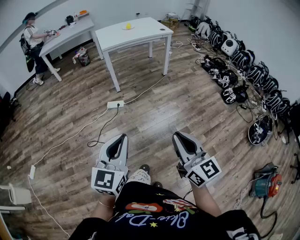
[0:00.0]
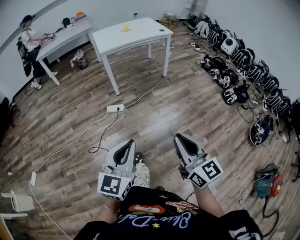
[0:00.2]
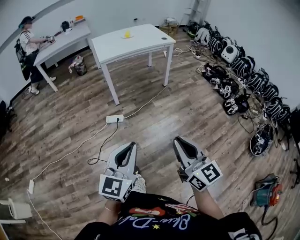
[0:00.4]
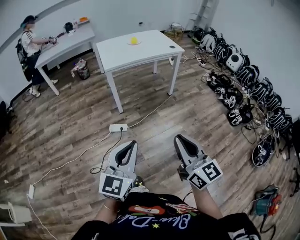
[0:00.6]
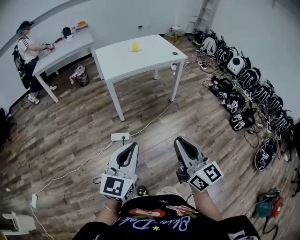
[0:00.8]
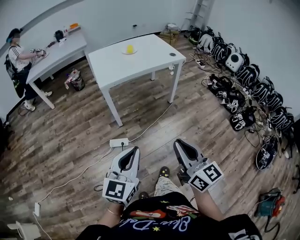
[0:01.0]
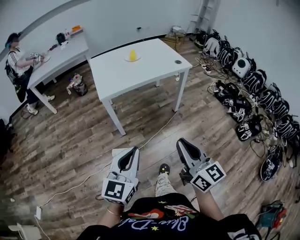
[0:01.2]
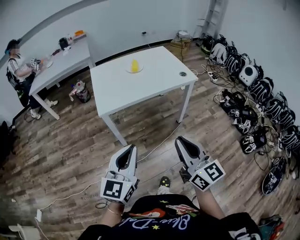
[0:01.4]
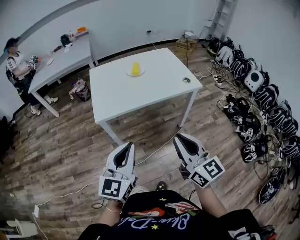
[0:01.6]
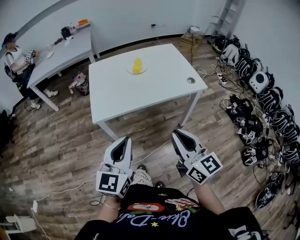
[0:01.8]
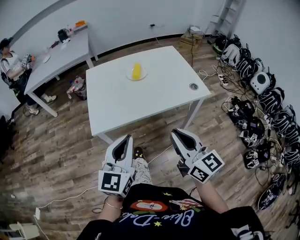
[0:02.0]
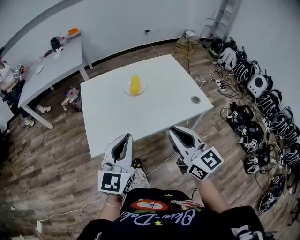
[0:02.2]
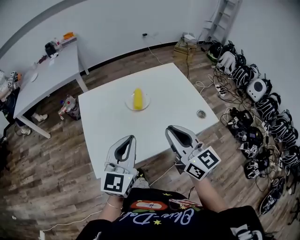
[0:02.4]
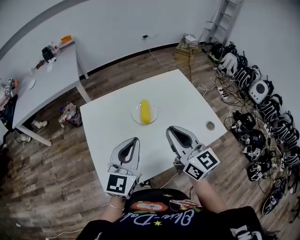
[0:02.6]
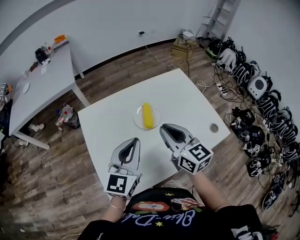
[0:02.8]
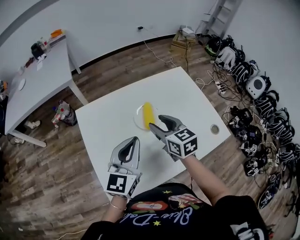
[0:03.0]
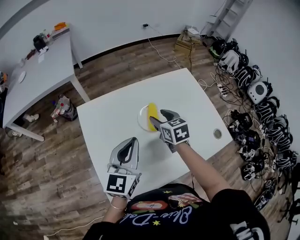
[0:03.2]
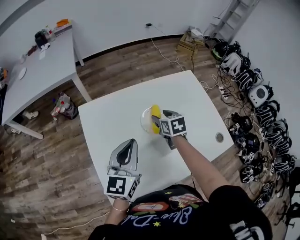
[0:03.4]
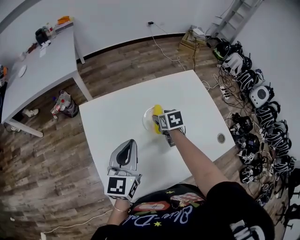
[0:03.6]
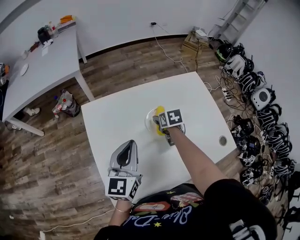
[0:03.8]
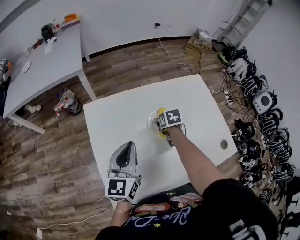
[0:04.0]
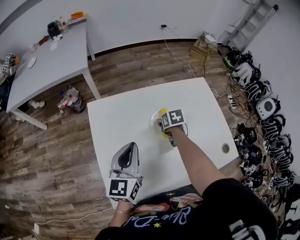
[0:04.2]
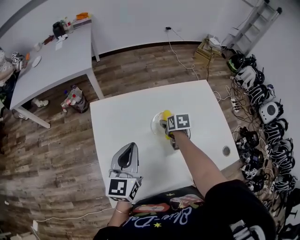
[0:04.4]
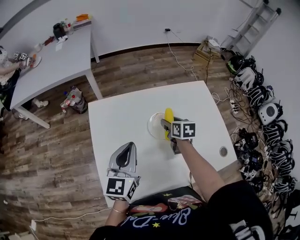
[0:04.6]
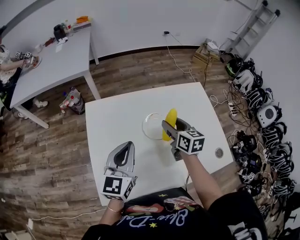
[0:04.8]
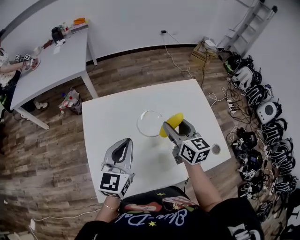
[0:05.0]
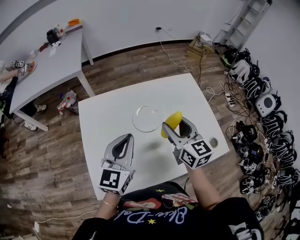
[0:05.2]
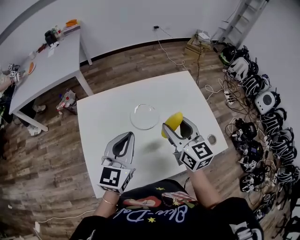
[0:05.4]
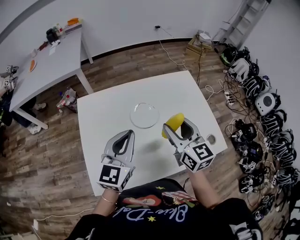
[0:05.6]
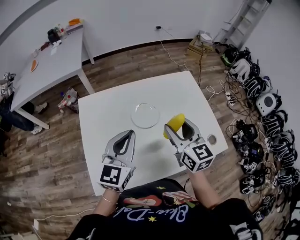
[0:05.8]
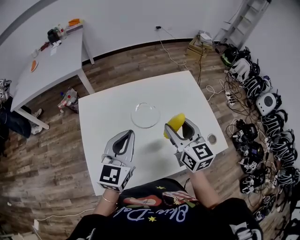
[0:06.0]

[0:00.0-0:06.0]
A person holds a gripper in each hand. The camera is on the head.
0:00.0 to 0:01.6: The pair of grippers is taken forward, about 80 cm.
0:01.6 to 0:03.0: The two grippers travel together, forward, roughly 60 cm. The right gripper rotates approximately 30 degrees, and opens.
0:03.0 to 0:04.4: The left gripper heads to the left, covering roughly 10 cm. Meanwhile the right gripper travels downward and forward by about 20 cm, and points its fingers roughly 30 degrees further downward.
0:04.4 to 0:06.0: The left gripper shifts some 10 cm to the right. The right gripper travels upward, backward and to the right by about 30 cm, and points its fingers some 50 degrees further upward.

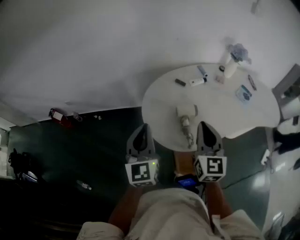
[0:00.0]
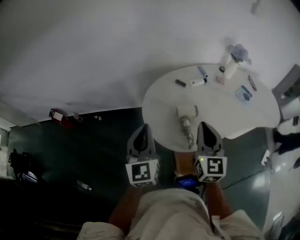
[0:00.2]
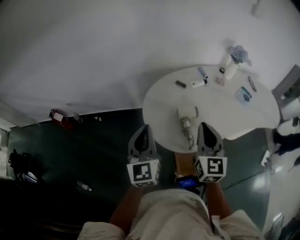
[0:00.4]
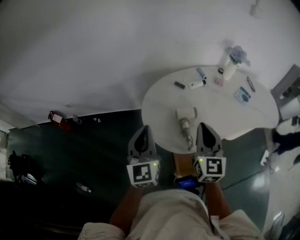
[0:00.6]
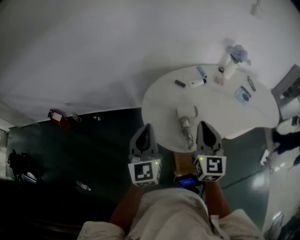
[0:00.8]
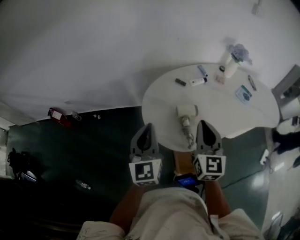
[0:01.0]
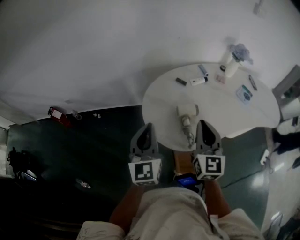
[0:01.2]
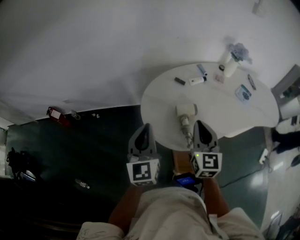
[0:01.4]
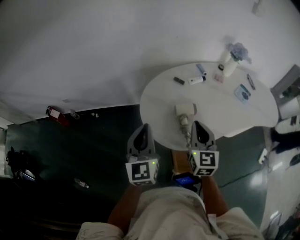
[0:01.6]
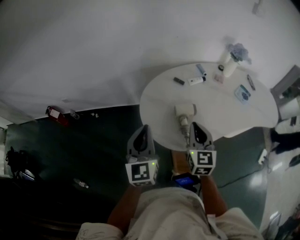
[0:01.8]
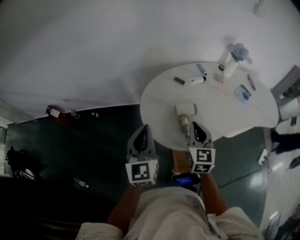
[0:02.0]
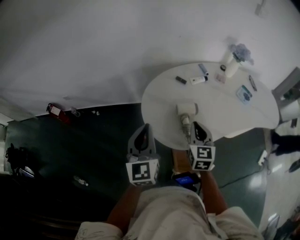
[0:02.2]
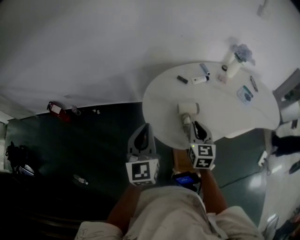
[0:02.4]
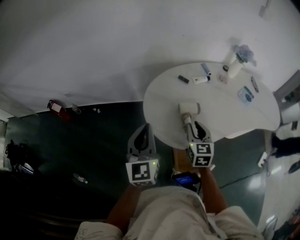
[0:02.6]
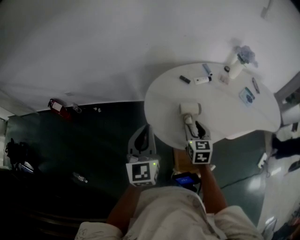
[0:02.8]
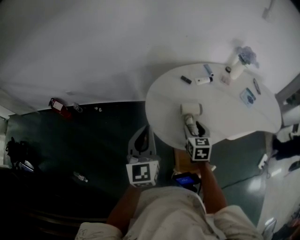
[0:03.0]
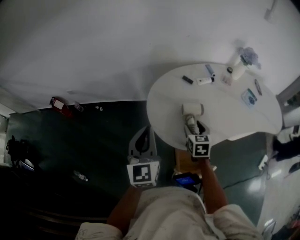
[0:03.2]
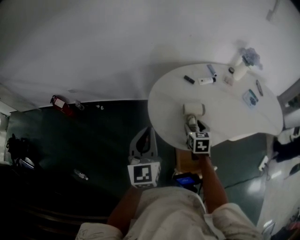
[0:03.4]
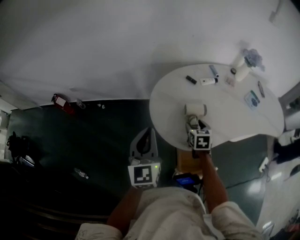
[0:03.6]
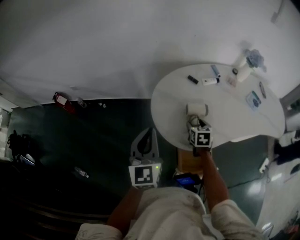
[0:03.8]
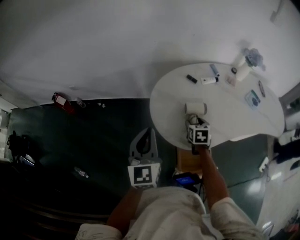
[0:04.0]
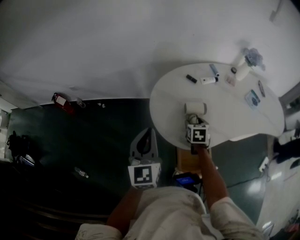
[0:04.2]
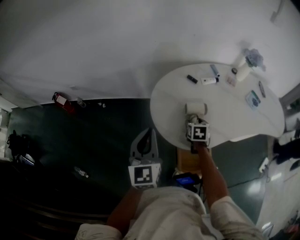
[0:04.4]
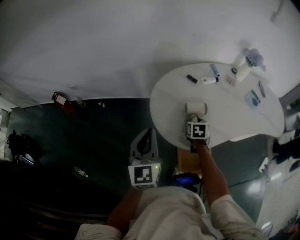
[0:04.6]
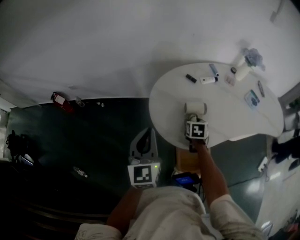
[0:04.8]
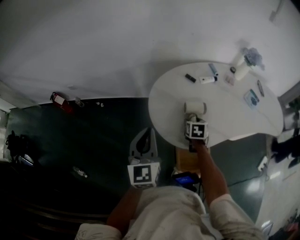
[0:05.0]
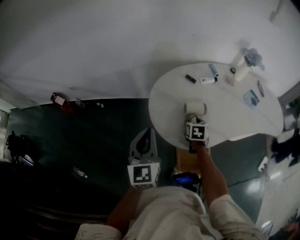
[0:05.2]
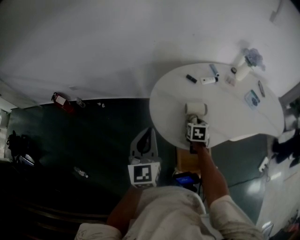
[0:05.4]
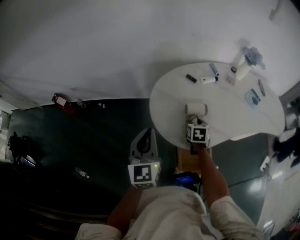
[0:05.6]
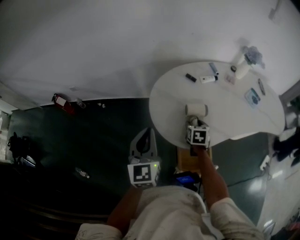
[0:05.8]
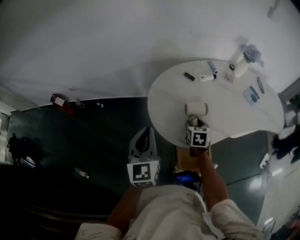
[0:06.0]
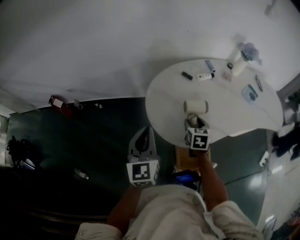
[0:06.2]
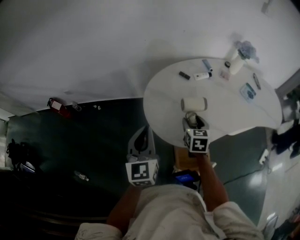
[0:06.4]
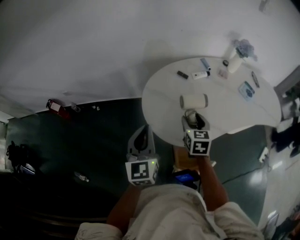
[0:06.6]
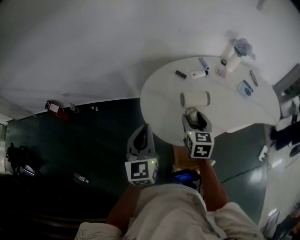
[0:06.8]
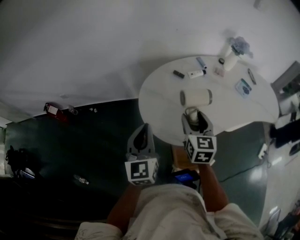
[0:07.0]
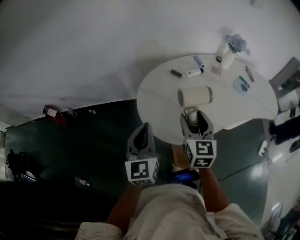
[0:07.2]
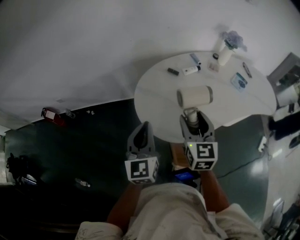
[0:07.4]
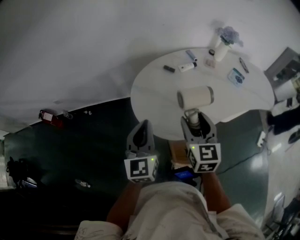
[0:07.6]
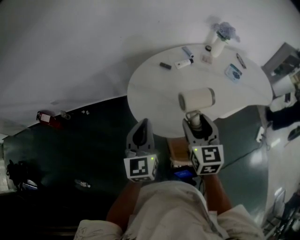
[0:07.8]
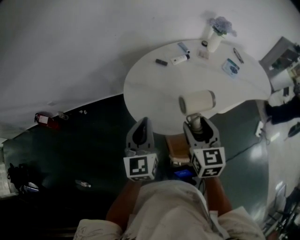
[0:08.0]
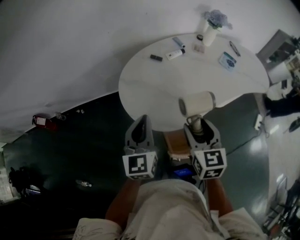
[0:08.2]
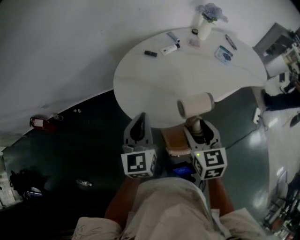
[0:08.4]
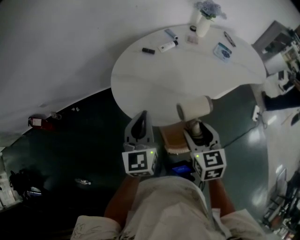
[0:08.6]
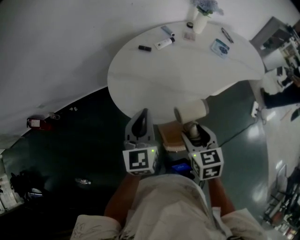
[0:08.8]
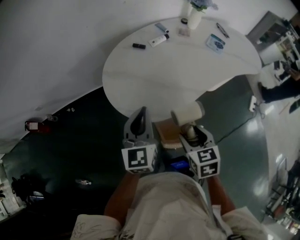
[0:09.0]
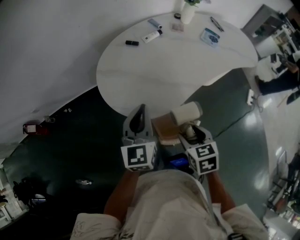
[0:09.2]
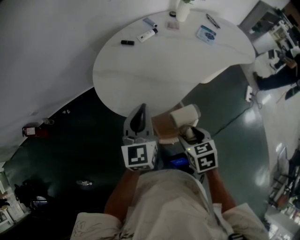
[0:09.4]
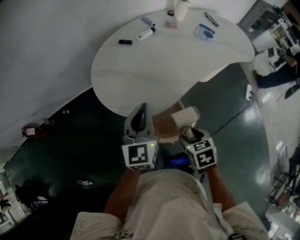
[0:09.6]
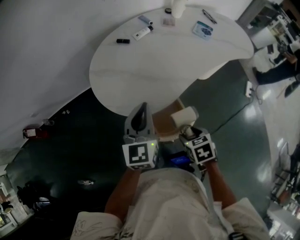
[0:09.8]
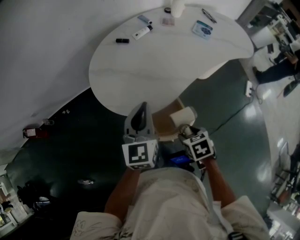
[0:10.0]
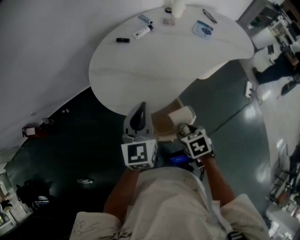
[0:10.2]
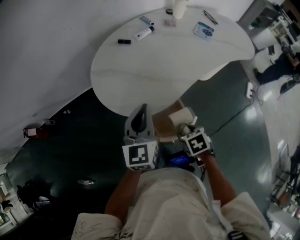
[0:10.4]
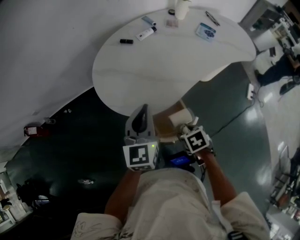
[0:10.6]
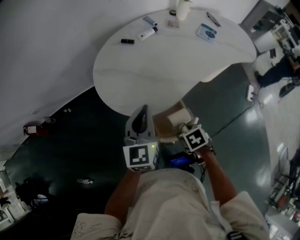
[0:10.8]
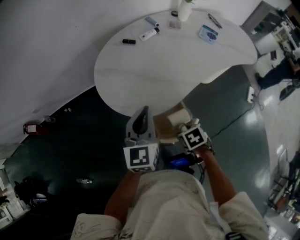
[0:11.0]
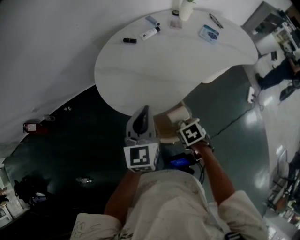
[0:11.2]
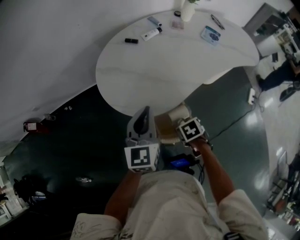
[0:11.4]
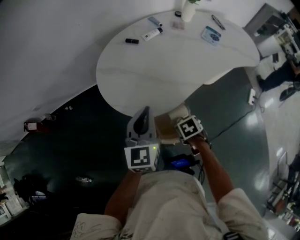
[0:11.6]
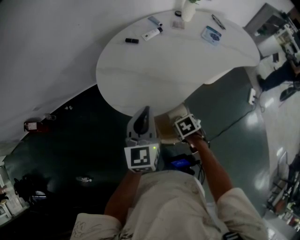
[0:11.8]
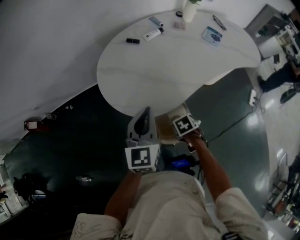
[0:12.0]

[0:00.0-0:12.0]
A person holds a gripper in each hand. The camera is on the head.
0:00.0 to 0:01.6: The right gripper shifts by roughly 5 cm.
0:01.6 to 0:03.0: The right gripper heads downward, covering about 10 cm, changes its angle by some 20 degrees, and opens its fingers.
0:03.0 to 0:04.4: The right gripper is displaced downward by some 10 cm.
0:06.0 to 0:07.6: The right gripper heads upward, covering roughly 20 cm, and turns by about 30 degrees.
0:07.6 to 0:09.0: The right gripper shifts about 20 cm backward, downward and to the right, and turns by approximately 30 degrees, while the left gripper shifts about 10 cm to the right.
0:09.0 to 0:10.4: The right gripper shifts some 10 cm downward, and changes its angle by some 30 degrees, while the left gripper shifts by about 5 cm.
0:10.4 to 0:12.0: The right gripper is displaced downward by approximately 5 cm.

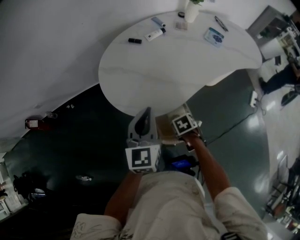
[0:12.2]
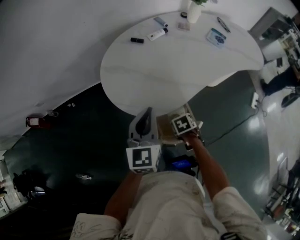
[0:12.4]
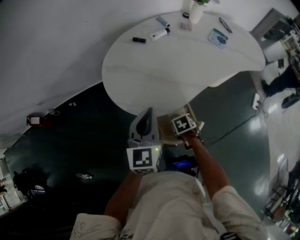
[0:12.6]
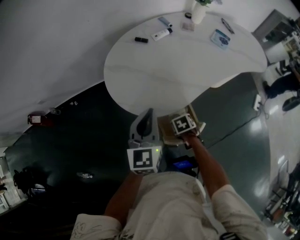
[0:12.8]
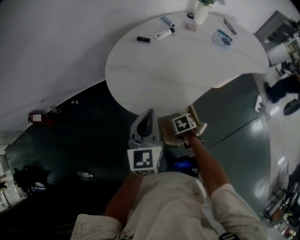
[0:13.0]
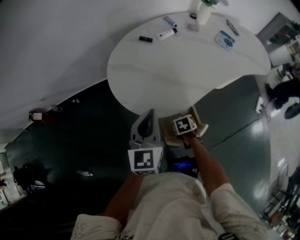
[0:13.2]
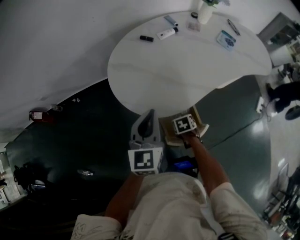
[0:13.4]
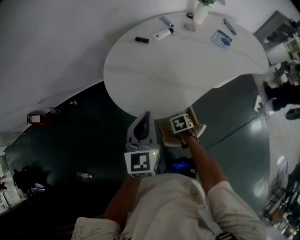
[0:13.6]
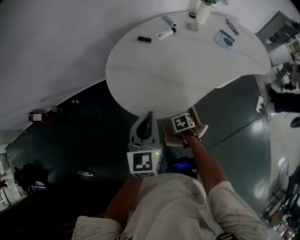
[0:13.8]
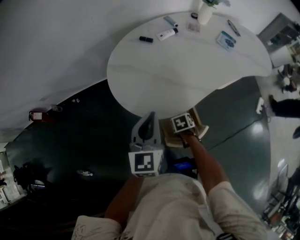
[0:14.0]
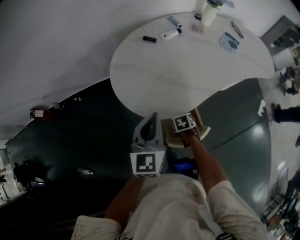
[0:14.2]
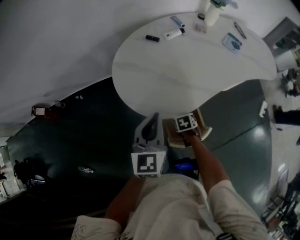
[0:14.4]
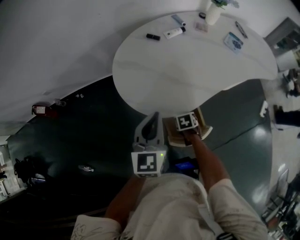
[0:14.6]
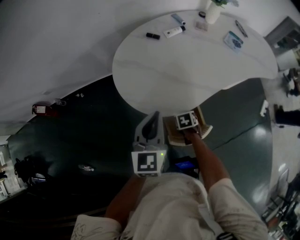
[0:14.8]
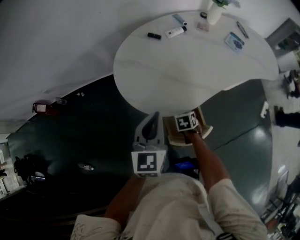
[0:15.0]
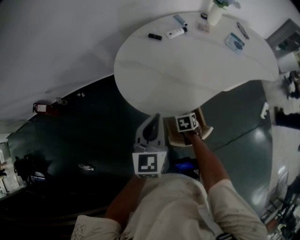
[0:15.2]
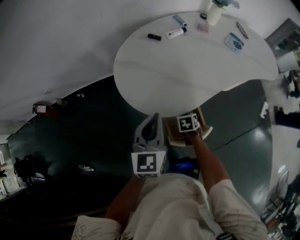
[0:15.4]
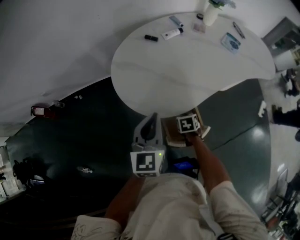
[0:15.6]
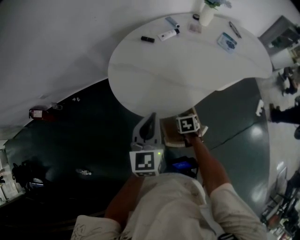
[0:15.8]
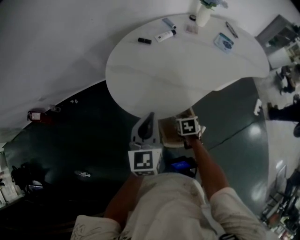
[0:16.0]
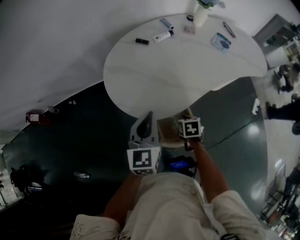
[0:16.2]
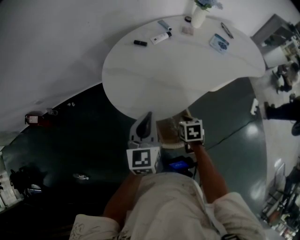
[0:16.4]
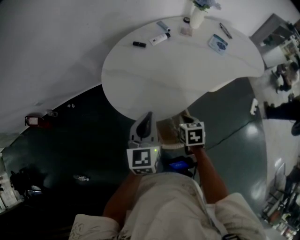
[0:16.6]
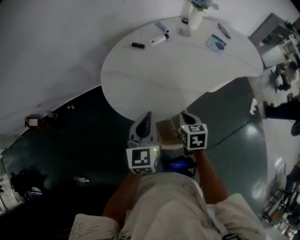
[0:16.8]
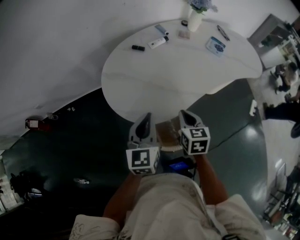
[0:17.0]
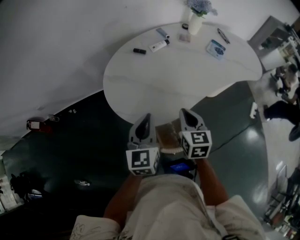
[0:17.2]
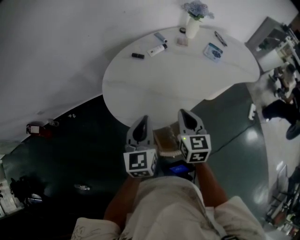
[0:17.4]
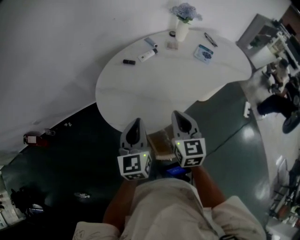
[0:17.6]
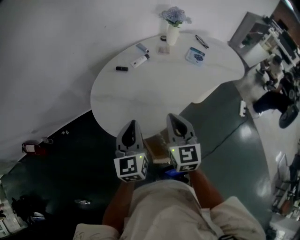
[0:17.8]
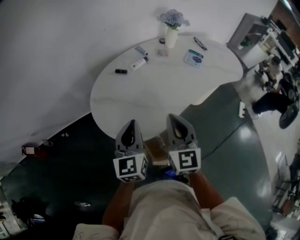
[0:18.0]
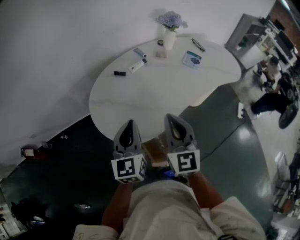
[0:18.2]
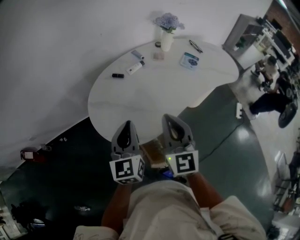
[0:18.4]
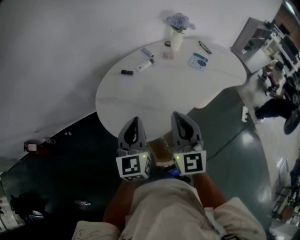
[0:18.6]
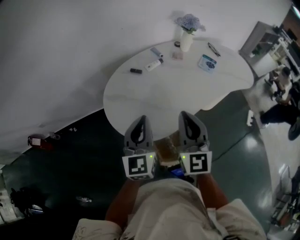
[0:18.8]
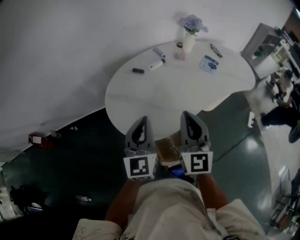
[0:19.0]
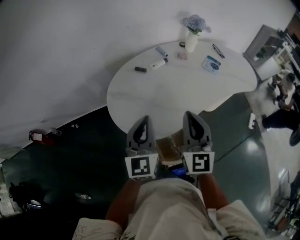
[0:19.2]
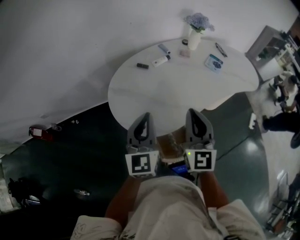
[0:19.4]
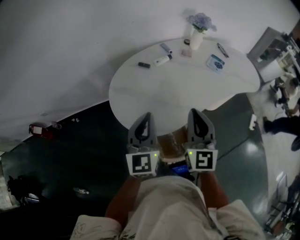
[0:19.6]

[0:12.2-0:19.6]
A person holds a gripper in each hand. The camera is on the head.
0:12.2 to 0:13.6: The right gripper goes about 5 cm downward.
0:13.6 to 0:15.2: The right gripper closes.
0:15.2 to 0:16.6: The right gripper travels upward by about 10 cm.
0:16.6 to 0:18.2: The right gripper travels upward by about 25 cm, and tips its fingers upward by about 50 degrees. Meanwhile the left gripper travels upward by roughly 5 cm.
0:18.2 to 0:19.6: The grippers move only a little.
